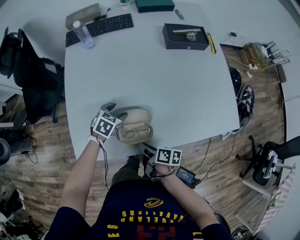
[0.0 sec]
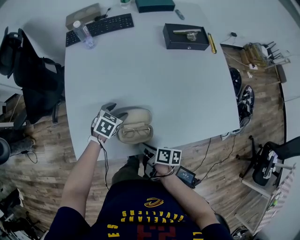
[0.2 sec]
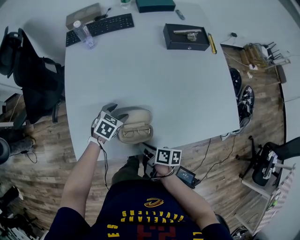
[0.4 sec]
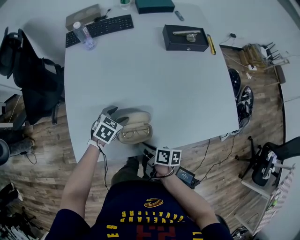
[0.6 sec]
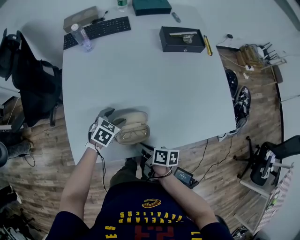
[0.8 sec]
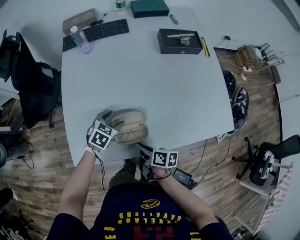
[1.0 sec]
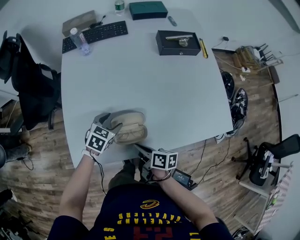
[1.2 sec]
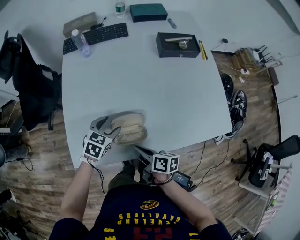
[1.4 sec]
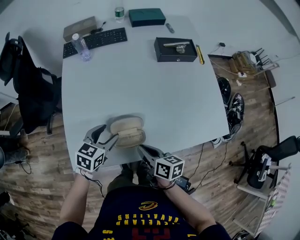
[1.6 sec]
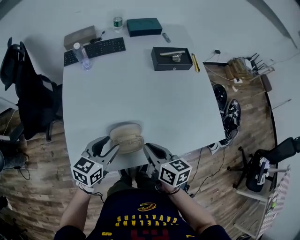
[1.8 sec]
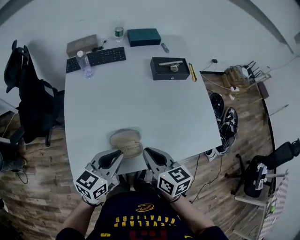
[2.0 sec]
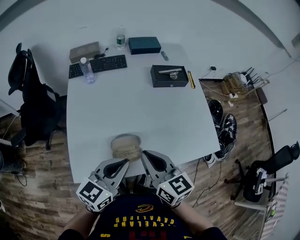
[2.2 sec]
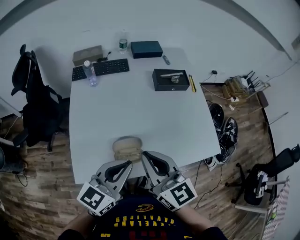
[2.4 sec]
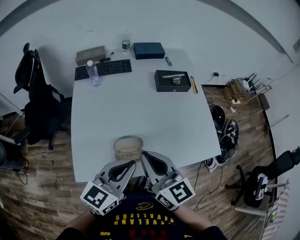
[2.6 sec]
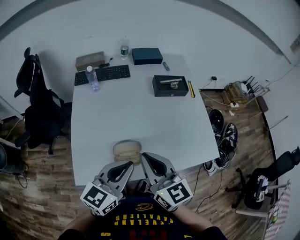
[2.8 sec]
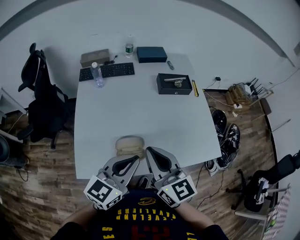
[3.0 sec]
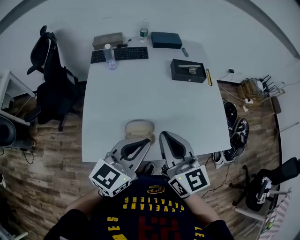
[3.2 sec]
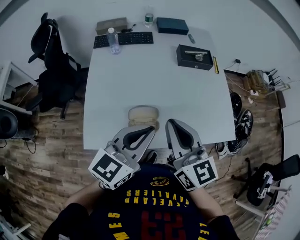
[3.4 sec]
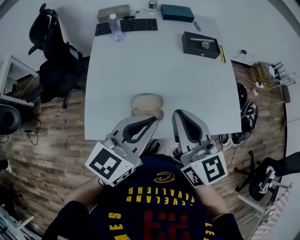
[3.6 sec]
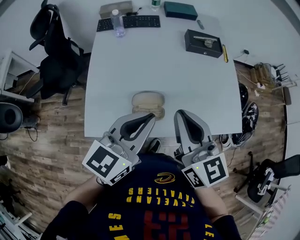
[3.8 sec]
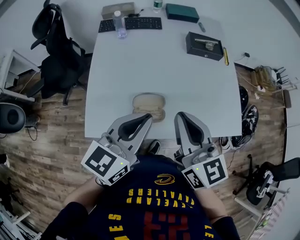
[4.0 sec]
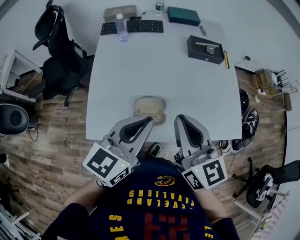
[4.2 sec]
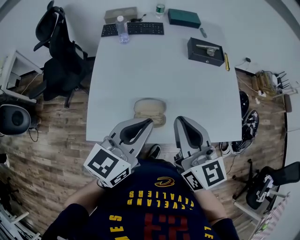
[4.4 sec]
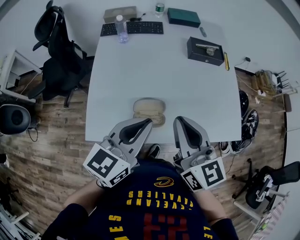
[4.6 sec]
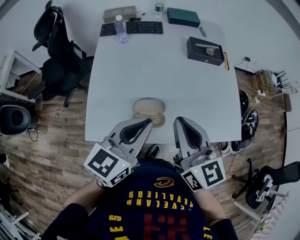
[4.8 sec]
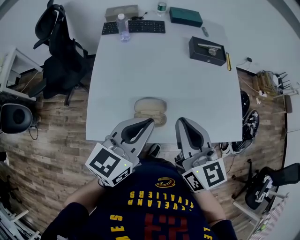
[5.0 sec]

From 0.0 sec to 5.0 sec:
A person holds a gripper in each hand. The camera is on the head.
From 0.0 sec to 1.6 sec: The right gripper goes approximately 10 cm upward, and changes its angle by approximately 30 degrees. The left gripper moves upward and backward, approximately 15 cm, and rotates roughly 20 degrees.
From 1.6 sec to 3.4 sec: Both grippers move upward, about 25 cm. The right gripper rotates around the line of its fingers by approximately 40 degrees, counterclockwise from behind. The left gripper angles its fingers upward, by approximately 30 degrees, and closes.
From 3.4 sec to 5.0 sec: There are only small adjustments of the grippers.

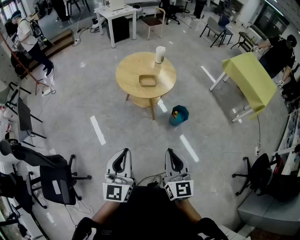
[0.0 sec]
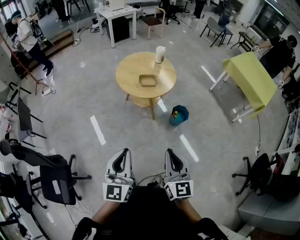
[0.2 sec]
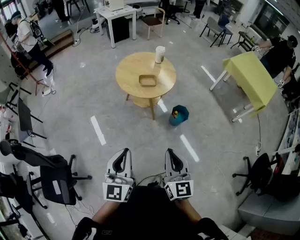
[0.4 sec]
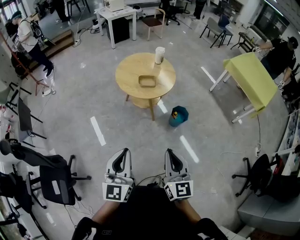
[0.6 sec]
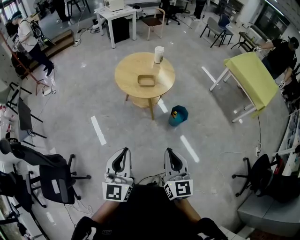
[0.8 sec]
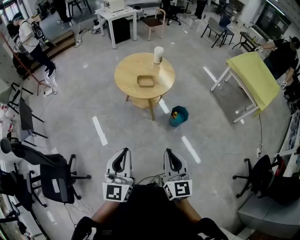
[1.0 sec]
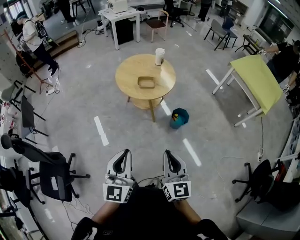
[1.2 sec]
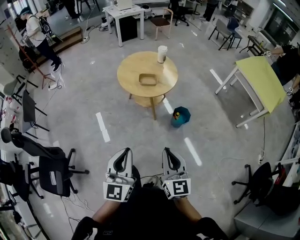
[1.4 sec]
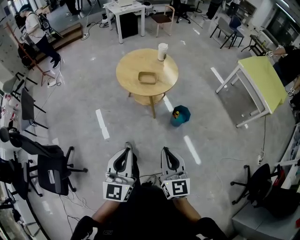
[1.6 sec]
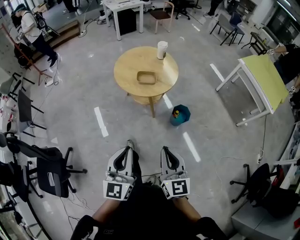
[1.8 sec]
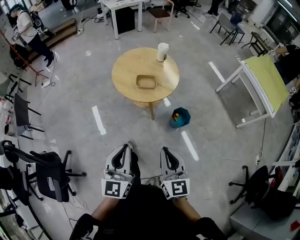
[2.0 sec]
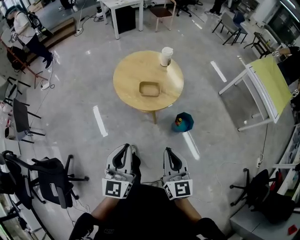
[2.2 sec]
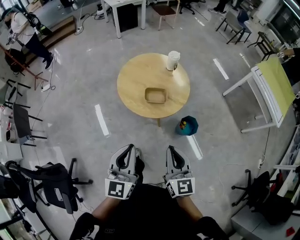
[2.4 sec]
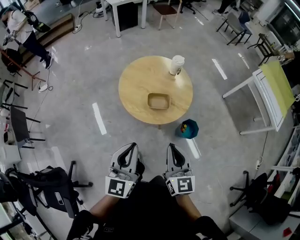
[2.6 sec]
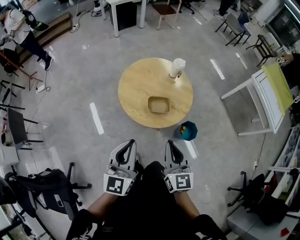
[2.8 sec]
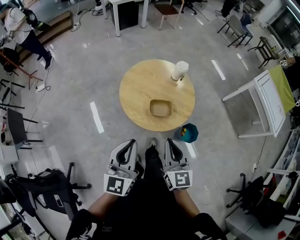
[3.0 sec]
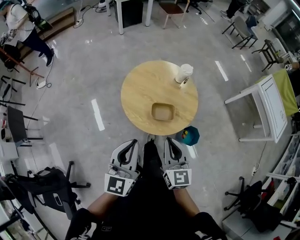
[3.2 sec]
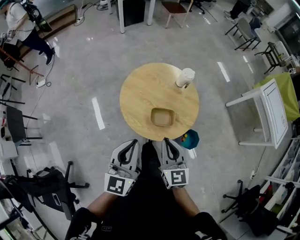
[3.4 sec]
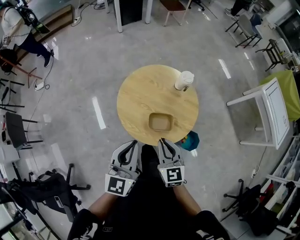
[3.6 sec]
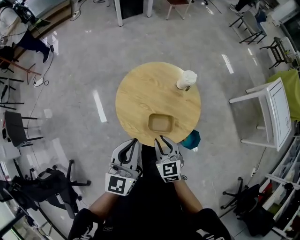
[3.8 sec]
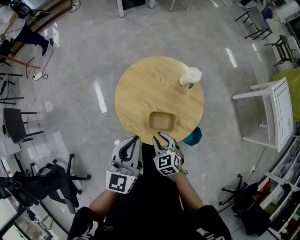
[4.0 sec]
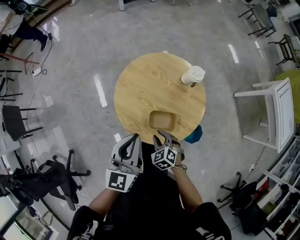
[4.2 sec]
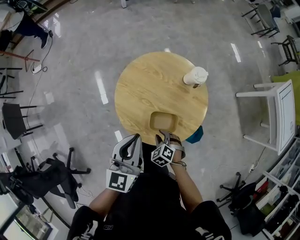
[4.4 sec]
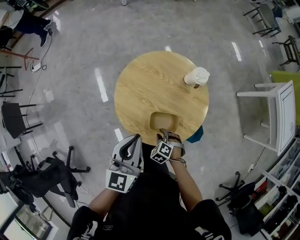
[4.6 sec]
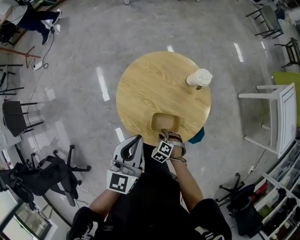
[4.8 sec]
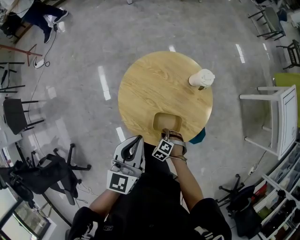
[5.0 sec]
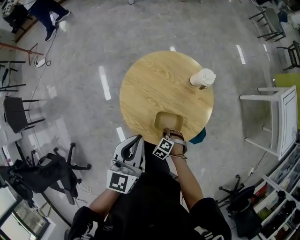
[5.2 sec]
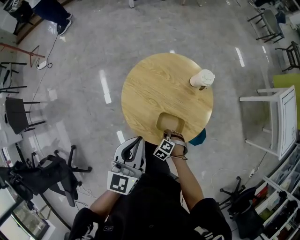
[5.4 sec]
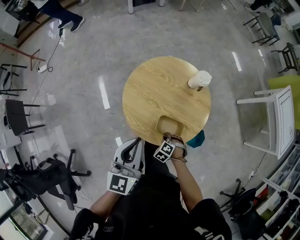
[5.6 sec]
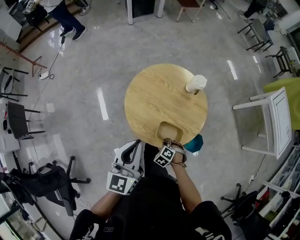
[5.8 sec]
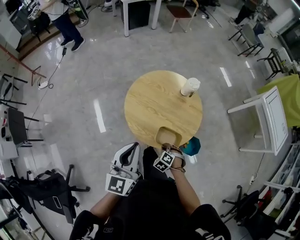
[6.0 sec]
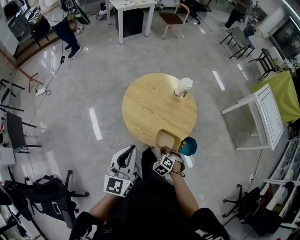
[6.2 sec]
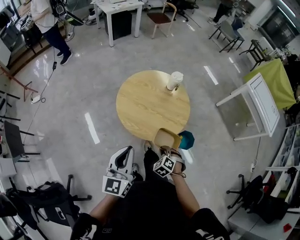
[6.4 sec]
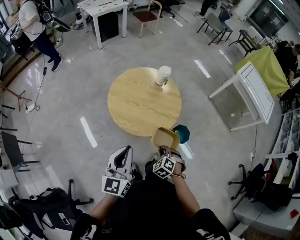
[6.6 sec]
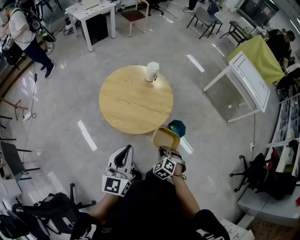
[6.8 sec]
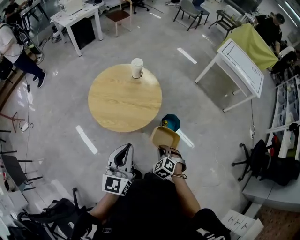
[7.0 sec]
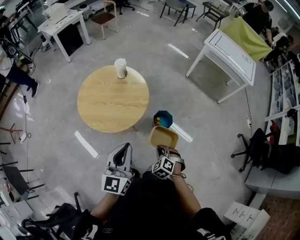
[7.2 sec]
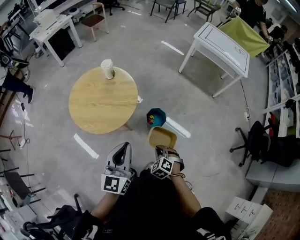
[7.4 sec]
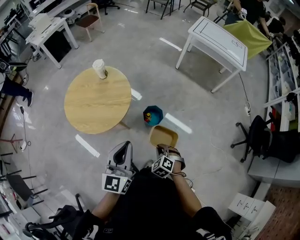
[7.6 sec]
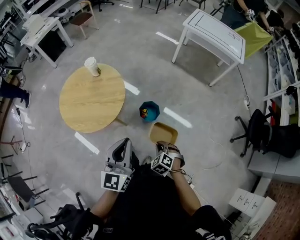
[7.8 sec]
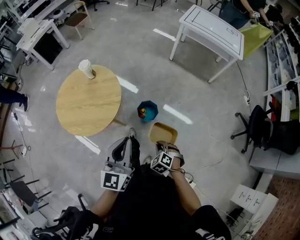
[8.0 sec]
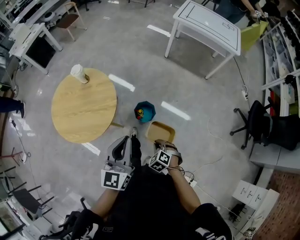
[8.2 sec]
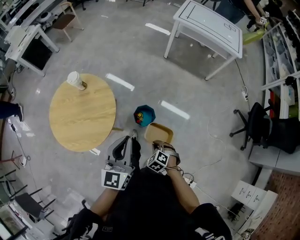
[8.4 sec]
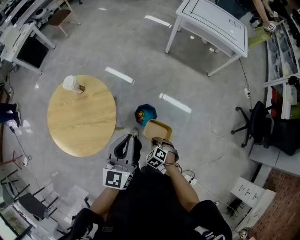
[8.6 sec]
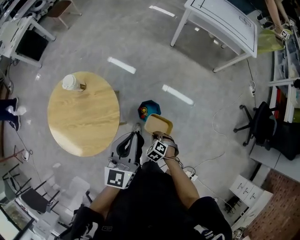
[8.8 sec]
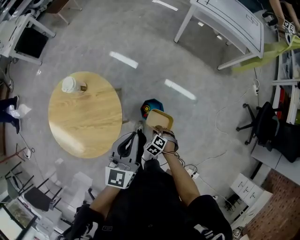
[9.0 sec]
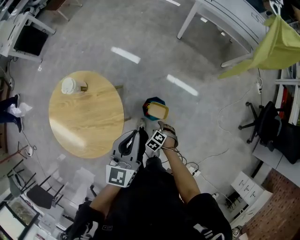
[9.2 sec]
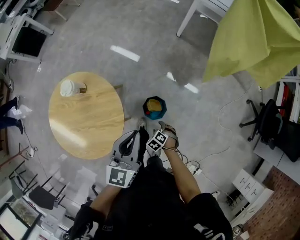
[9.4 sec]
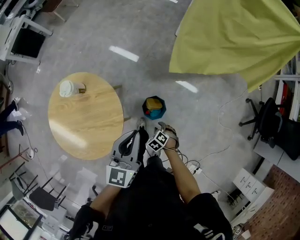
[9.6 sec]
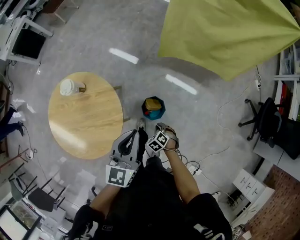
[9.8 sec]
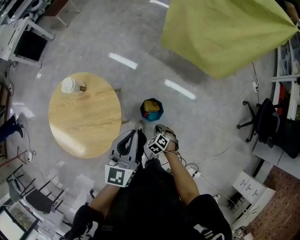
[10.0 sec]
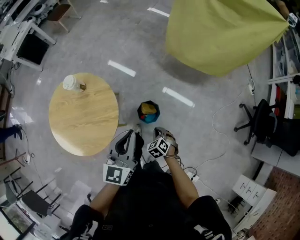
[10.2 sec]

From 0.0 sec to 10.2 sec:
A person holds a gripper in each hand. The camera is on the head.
From 0.0 sec to 1.4 sec: The two grippers go approximately 5 cm to the right.
From 1.4 sec to 3.0 sec: Both grippers are carried forward, roughly 50 cm.
From 3.0 sec to 4.4 sec: The left gripper moves forward and downward, some 25 cm. The right gripper travels downward and forward by about 35 cm, tips its fingers downward by roughly 60 degrees, and opens up.
From 4.4 sec to 5.8 sec: The right gripper changes place by some 5 cm, and closes up. Meanwhile the left gripper shifts by about 10 cm.
From 5.8 sec to 7.2 sec: The left gripper changes place by approximately 30 cm, and rotates approximately 30 degrees. Meanwhile the right gripper changes place by some 35 cm, and changes its angle by some 30 degrees.
From 7.2 sec to 8.8 sec: The left gripper shifts approximately 35 cm forward and to the right. The right gripper goes some 30 cm forward, downward and to the right, and turns by roughly 20 degrees.
From 8.8 sec to 10.2 sec: The right gripper reaches some 10 cm downward, then returns, and opens, then closes again.

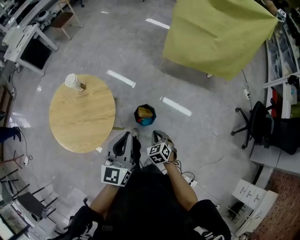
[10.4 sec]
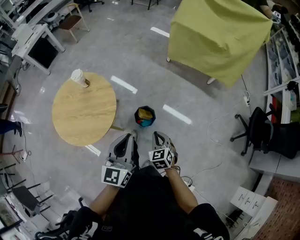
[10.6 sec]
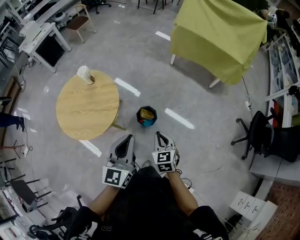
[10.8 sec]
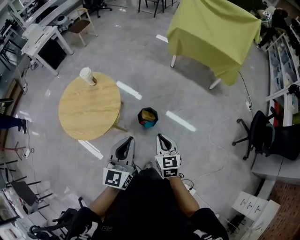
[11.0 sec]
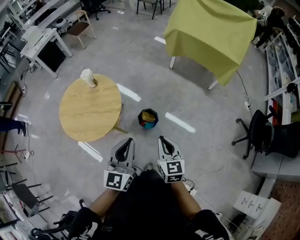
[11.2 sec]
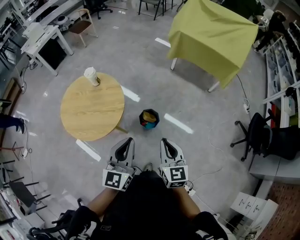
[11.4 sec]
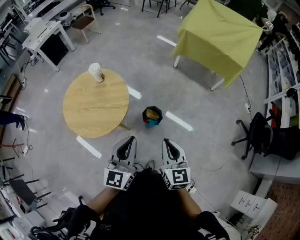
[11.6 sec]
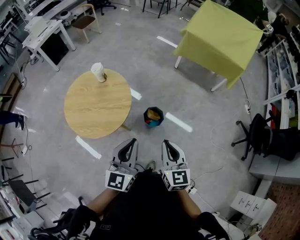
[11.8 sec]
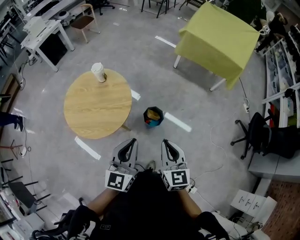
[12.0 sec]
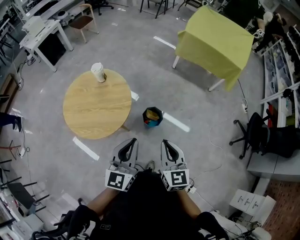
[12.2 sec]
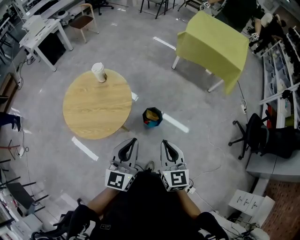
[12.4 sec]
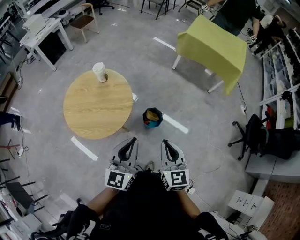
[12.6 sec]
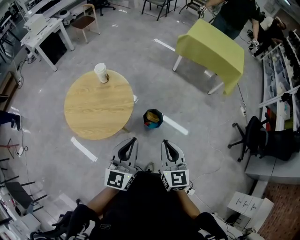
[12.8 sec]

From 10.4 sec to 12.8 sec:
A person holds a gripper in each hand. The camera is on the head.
From 10.4 sec to 11.6 sec: The right gripper heads upward and backward, covering roughly 30 cm, and points its fingers about 40 degrees further upward. Meanwhile the left gripper heads backward and upward, covering approximately 15 cm.
From 11.6 sec to 12.8 sec: The two grippers go roughly 5 cm to the left.

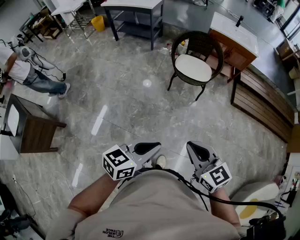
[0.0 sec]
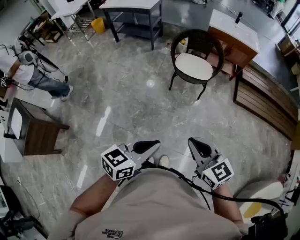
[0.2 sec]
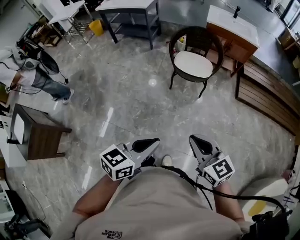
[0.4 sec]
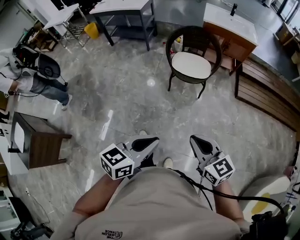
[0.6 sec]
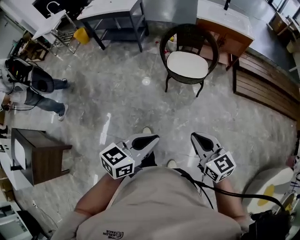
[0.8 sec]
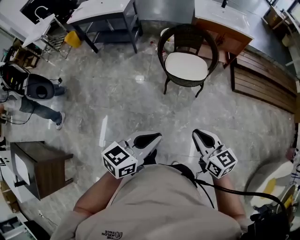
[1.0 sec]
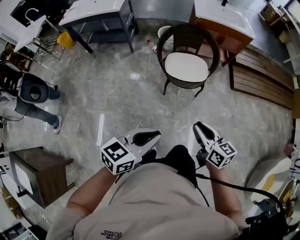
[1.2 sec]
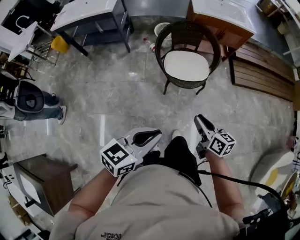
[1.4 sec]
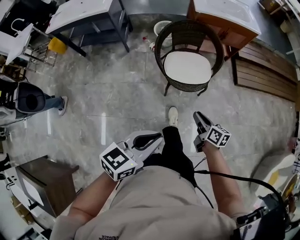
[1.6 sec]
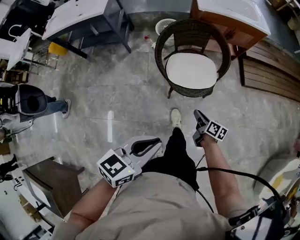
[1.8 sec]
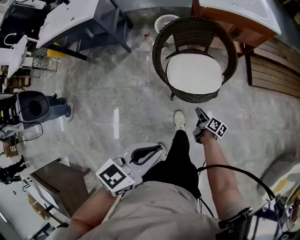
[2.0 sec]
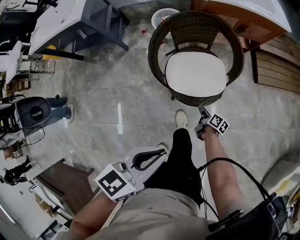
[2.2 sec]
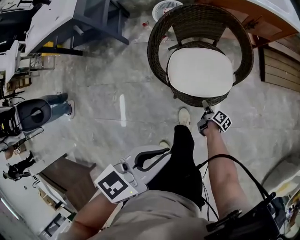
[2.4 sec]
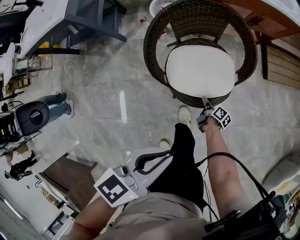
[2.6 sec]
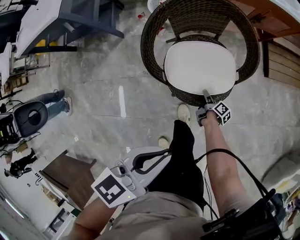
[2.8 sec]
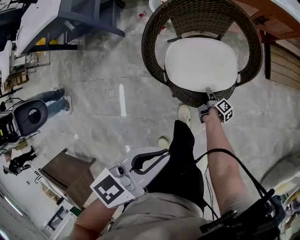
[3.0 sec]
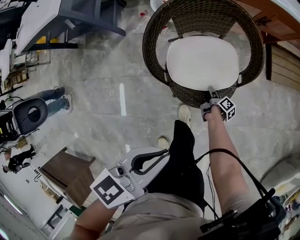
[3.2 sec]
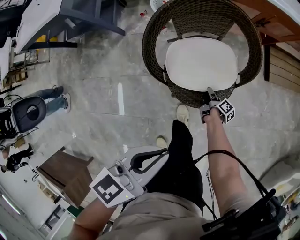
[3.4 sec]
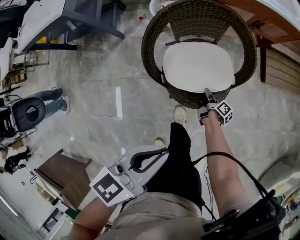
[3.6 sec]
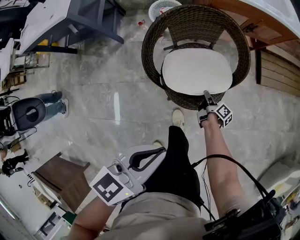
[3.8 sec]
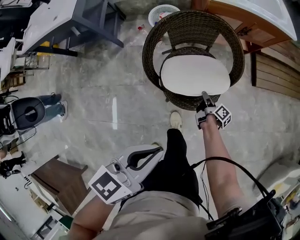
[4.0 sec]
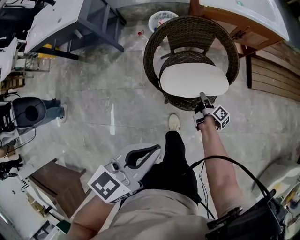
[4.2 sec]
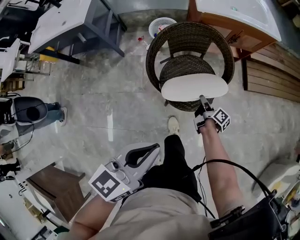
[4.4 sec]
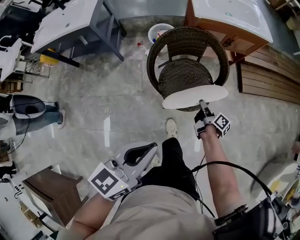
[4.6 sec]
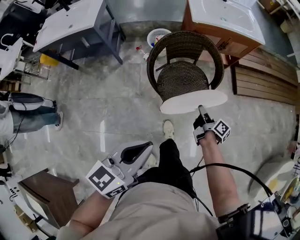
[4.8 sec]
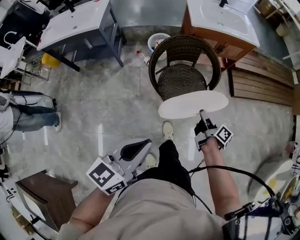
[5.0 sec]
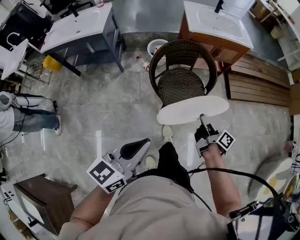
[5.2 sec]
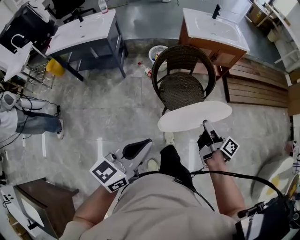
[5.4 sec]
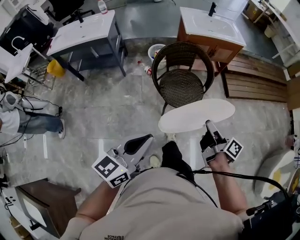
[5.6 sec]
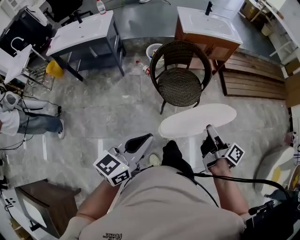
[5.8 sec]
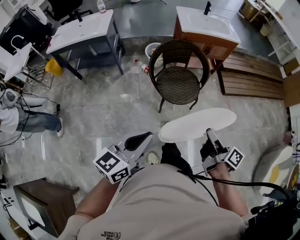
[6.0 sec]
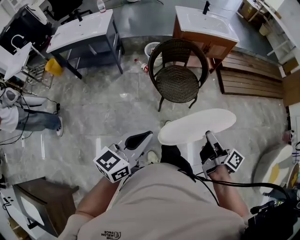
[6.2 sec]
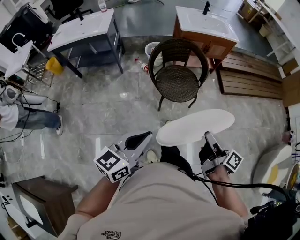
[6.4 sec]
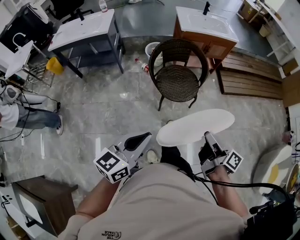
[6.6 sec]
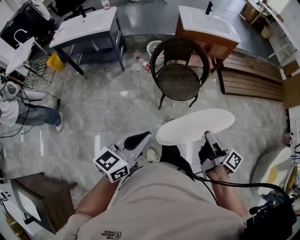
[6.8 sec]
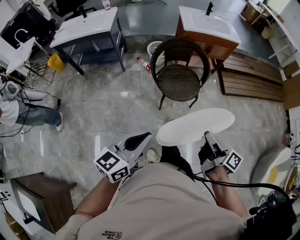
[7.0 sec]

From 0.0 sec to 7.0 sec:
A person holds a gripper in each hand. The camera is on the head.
From 0.0 sec to 1.4 sec: The left gripper moves roughly 35 cm.
From 1.4 sec to 2.8 sec: The left gripper shifts by approximately 40 cm.
From 2.8 sec to 4.2 sec: The left gripper heads upward, covering about 10 cm.
From 4.2 sec to 5.6 sec: The left gripper shifts by about 30 cm.
From 5.6 sec to 7.0 sec: The left gripper moves some 10 cm.
